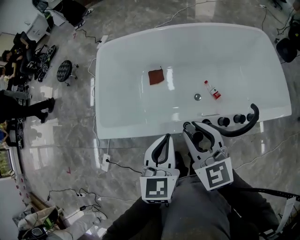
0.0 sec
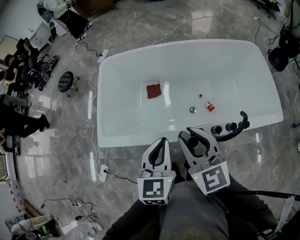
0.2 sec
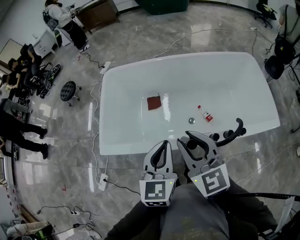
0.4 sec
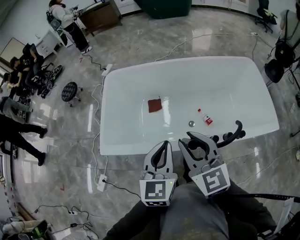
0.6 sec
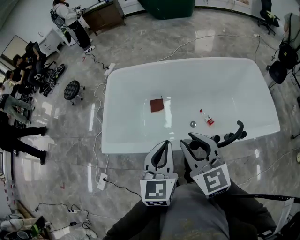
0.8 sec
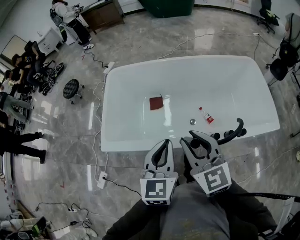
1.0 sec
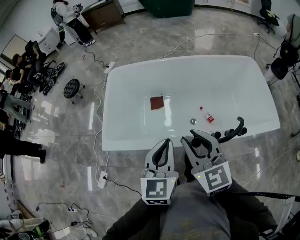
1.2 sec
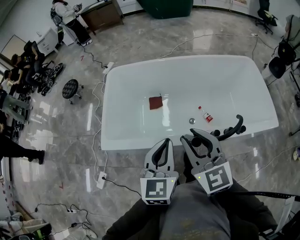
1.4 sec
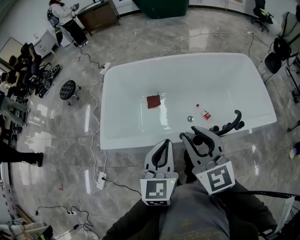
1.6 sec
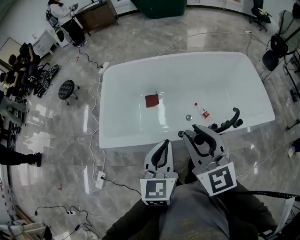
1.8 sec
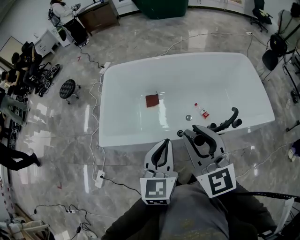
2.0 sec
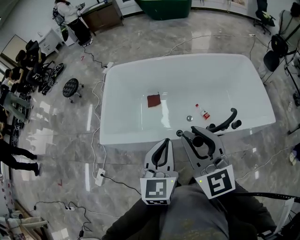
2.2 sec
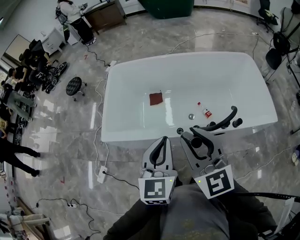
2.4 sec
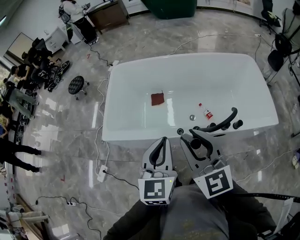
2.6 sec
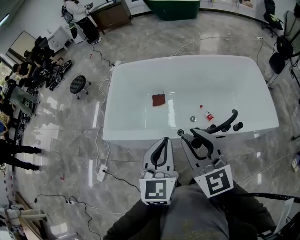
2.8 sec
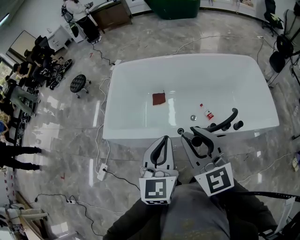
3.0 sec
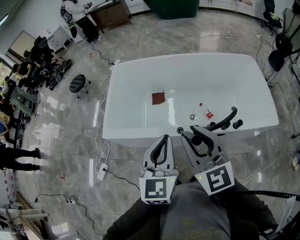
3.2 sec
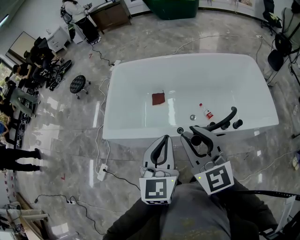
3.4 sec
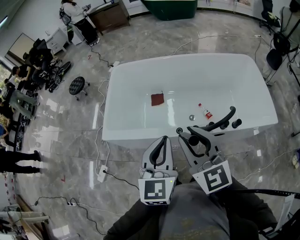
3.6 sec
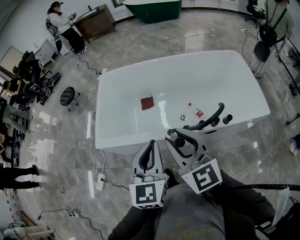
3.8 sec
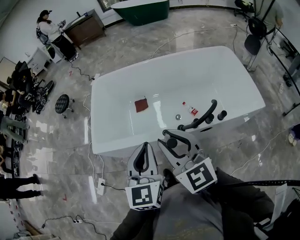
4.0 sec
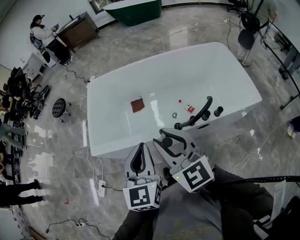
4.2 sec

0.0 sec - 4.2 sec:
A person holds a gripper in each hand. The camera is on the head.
0.0 sec - 1.4 sec: Both grippers move upward, roughly 10 cm.
1.4 sec - 2.8 sec: Both grippers move backward, roughly 10 cm.
2.8 sec - 4.2 sec: The grippers make only small movements.

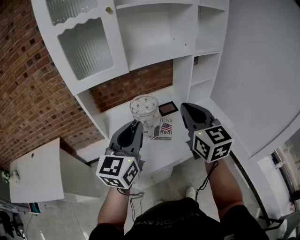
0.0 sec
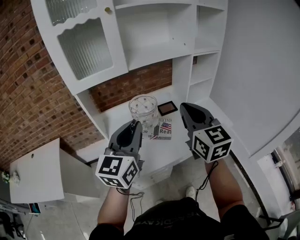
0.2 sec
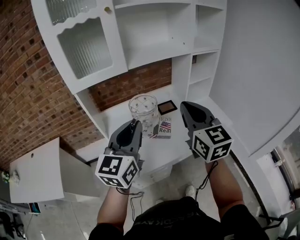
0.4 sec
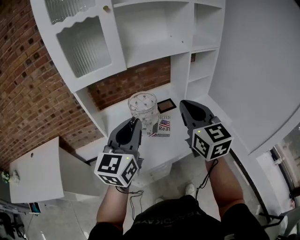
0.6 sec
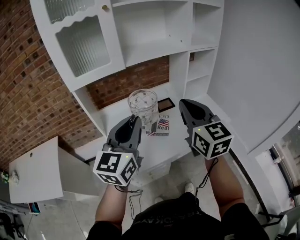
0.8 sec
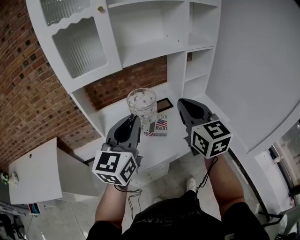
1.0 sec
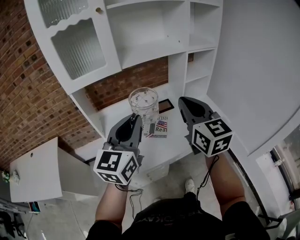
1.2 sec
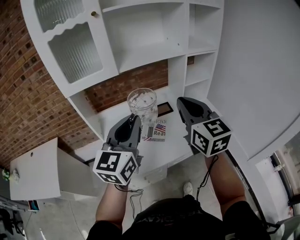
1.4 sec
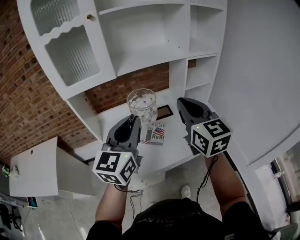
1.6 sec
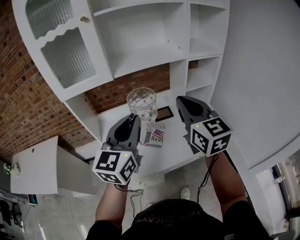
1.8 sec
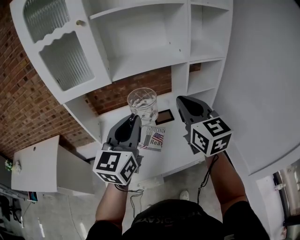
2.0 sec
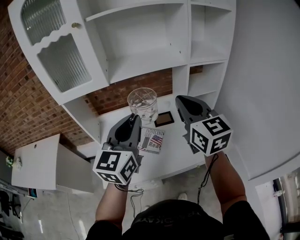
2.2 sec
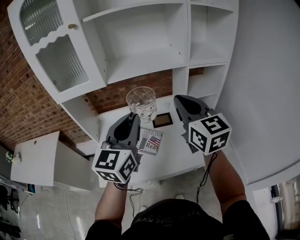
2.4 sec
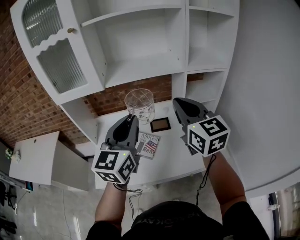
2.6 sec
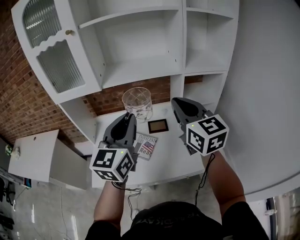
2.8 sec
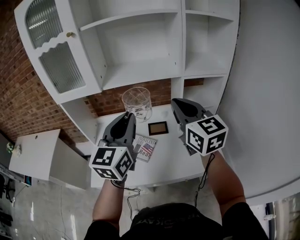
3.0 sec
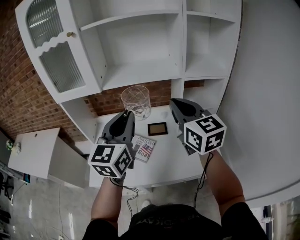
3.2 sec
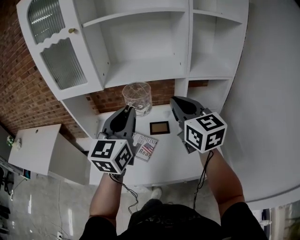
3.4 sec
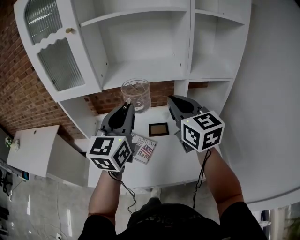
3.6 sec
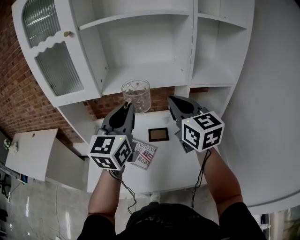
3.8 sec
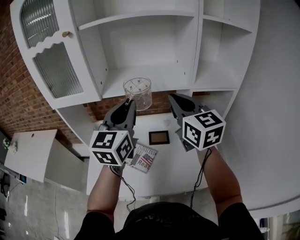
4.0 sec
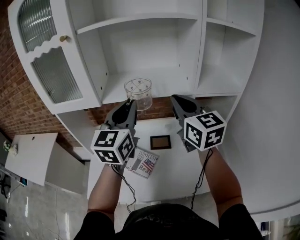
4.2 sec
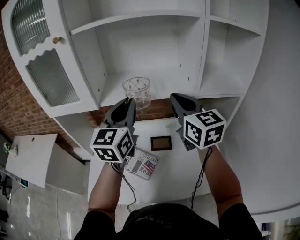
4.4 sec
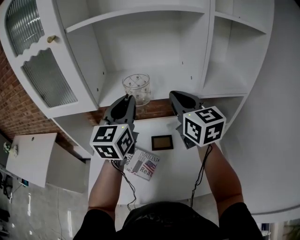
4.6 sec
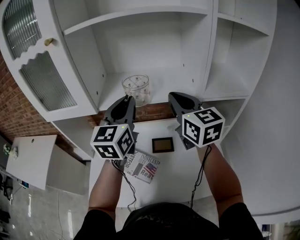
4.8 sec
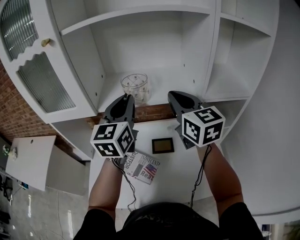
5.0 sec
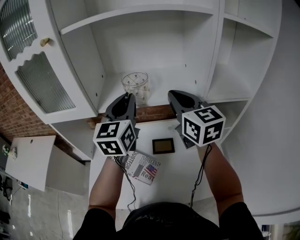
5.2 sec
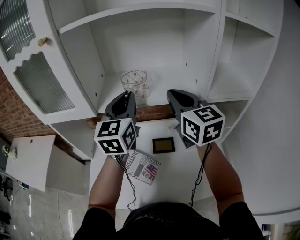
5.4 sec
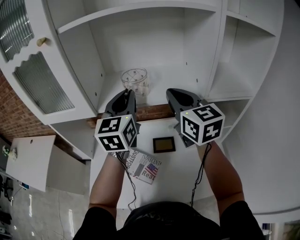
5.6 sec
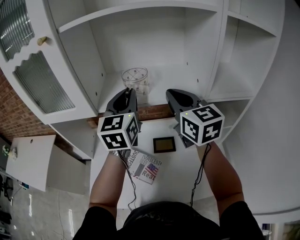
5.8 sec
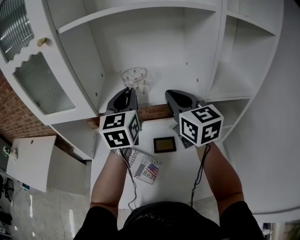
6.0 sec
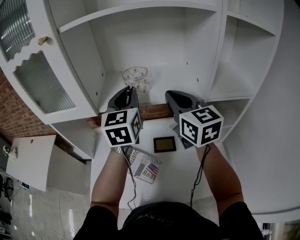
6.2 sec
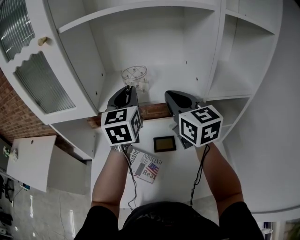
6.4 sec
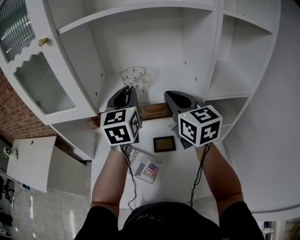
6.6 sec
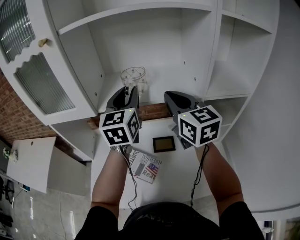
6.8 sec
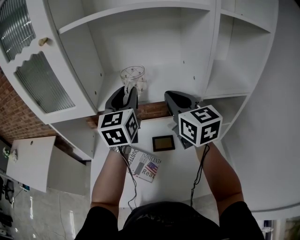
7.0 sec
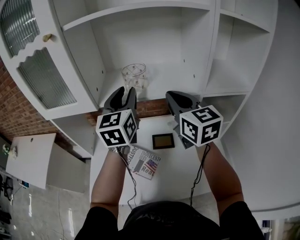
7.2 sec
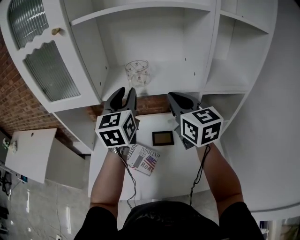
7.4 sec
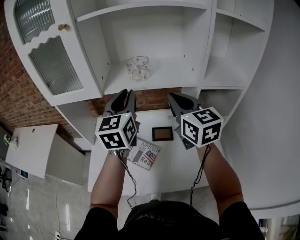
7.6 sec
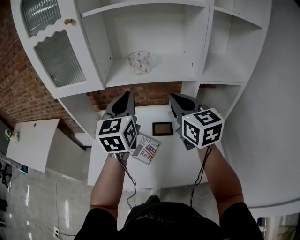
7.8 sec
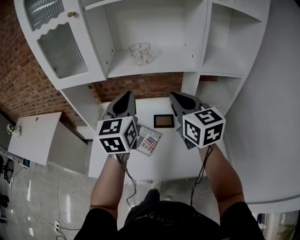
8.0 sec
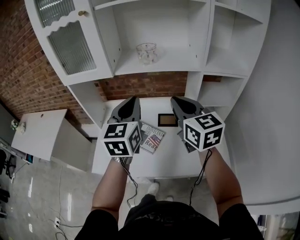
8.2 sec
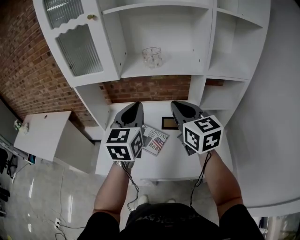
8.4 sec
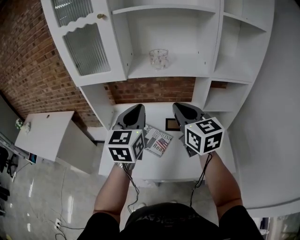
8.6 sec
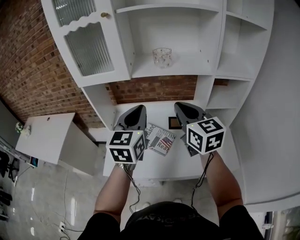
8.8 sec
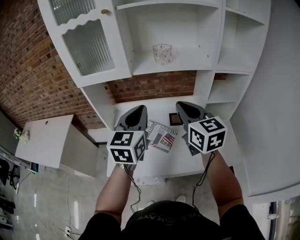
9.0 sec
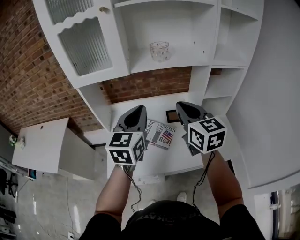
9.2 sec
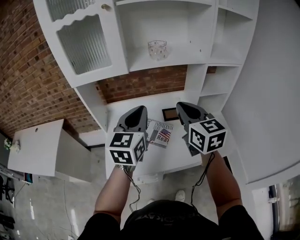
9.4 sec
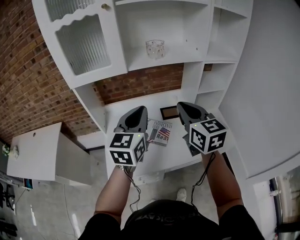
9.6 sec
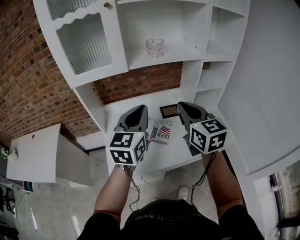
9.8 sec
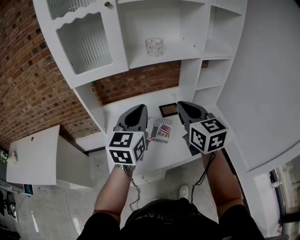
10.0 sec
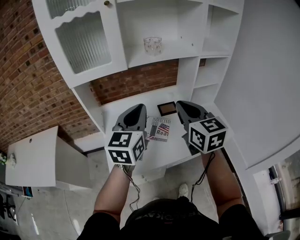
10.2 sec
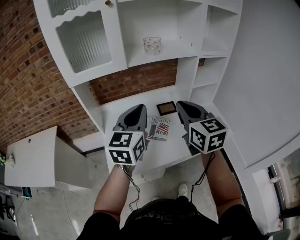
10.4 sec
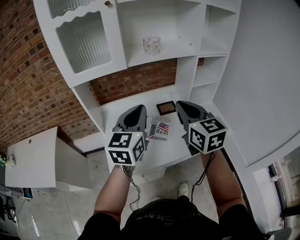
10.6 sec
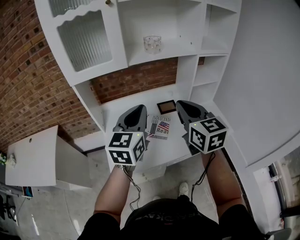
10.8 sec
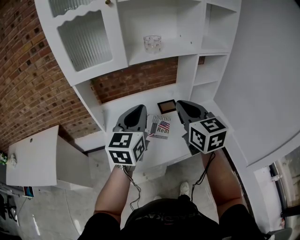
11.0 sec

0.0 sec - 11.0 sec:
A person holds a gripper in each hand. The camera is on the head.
0.0 sec - 1.6 sec: Both grippers travel together to the right, approximately 5 cm.
1.6 sec - 3.2 sec: The two grippers go approximately 15 cm to the right and forward.
3.2 sec - 4.8 sec: The grippers both shift forward by roughly 20 cm.
4.8 sec - 6.2 sec: The left gripper goes some 5 cm forward.
6.2 sec - 7.8 sec: The grippers both shift backward by roughly 15 cm. The left gripper opens, then closes once more.
7.8 sec - 9.4 sec: The left gripper heads backward and to the left, covering some 15 cm; the right gripper heads to the left and backward, covering roughly 15 cm.
9.4 sec - 11.0 sec: The left gripper shifts by roughly 5 cm, while the right gripper shifts roughly 5 cm backward.

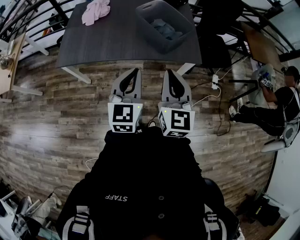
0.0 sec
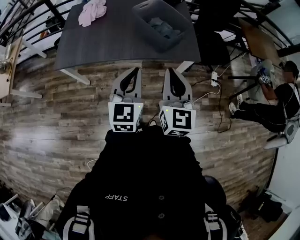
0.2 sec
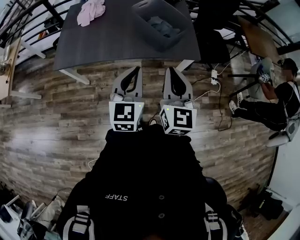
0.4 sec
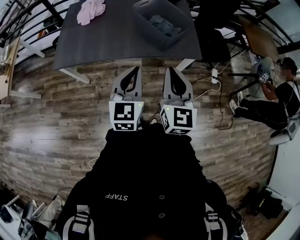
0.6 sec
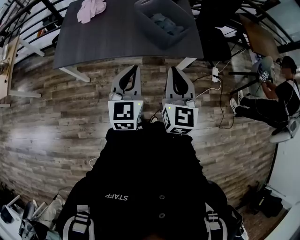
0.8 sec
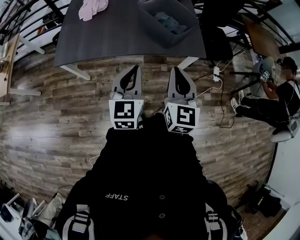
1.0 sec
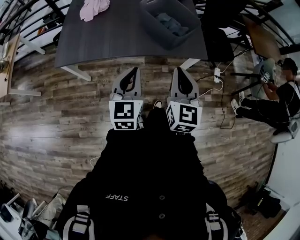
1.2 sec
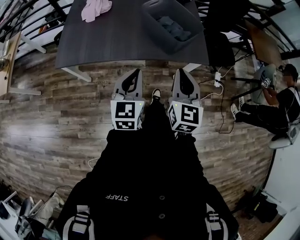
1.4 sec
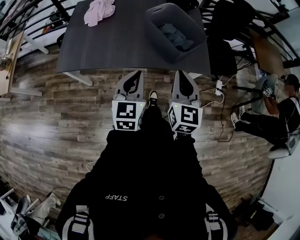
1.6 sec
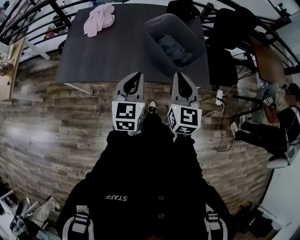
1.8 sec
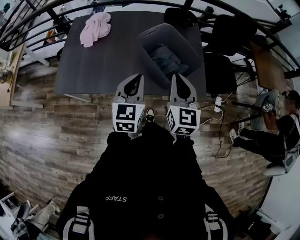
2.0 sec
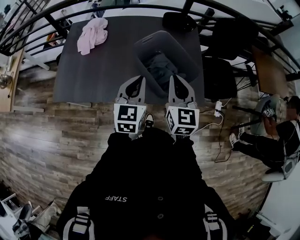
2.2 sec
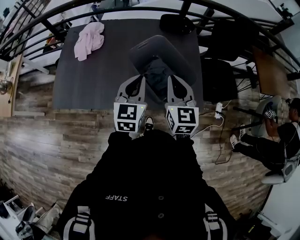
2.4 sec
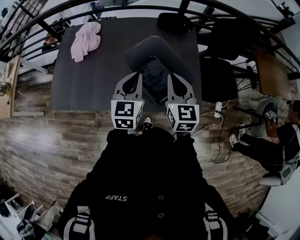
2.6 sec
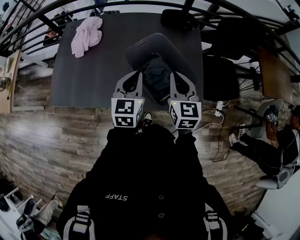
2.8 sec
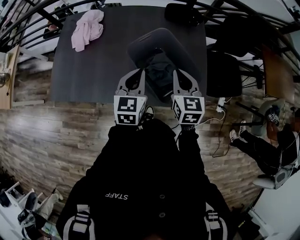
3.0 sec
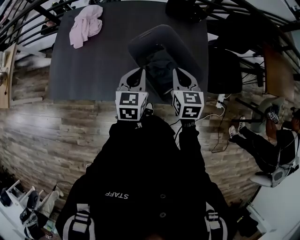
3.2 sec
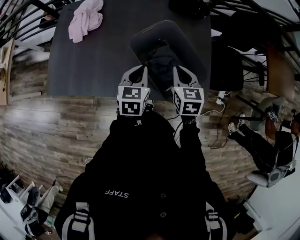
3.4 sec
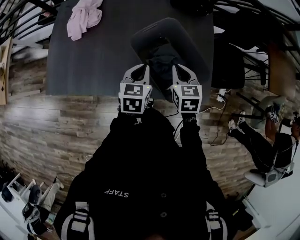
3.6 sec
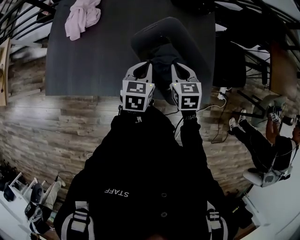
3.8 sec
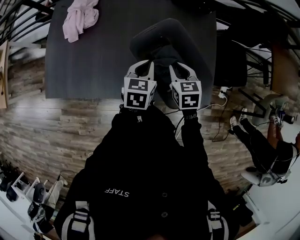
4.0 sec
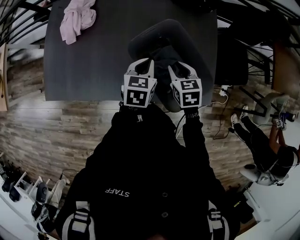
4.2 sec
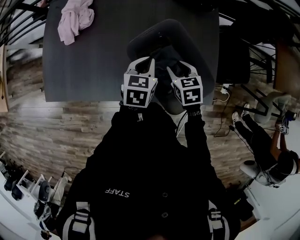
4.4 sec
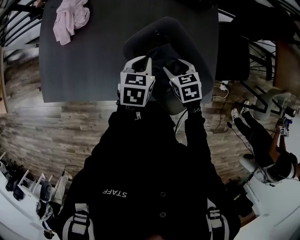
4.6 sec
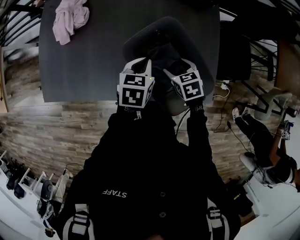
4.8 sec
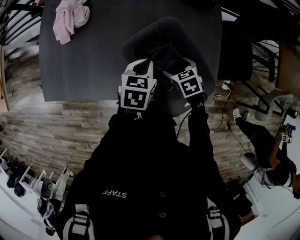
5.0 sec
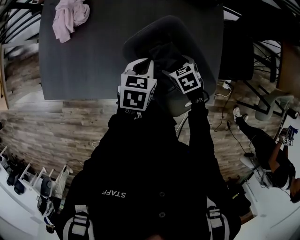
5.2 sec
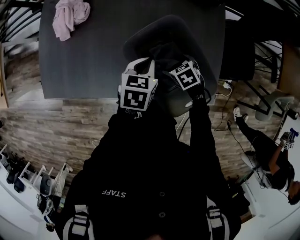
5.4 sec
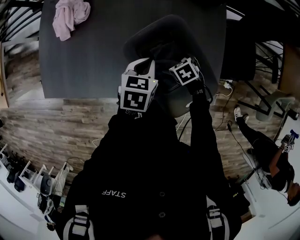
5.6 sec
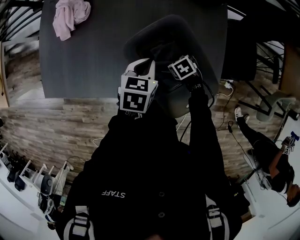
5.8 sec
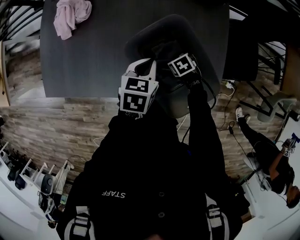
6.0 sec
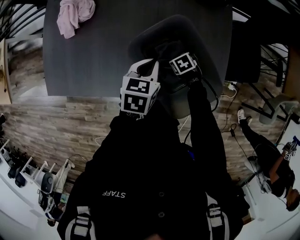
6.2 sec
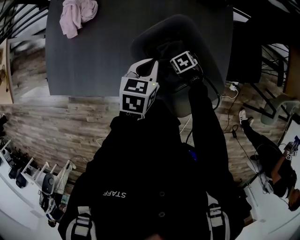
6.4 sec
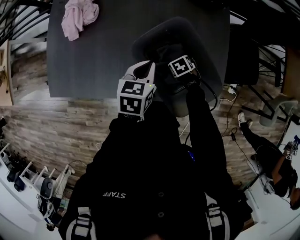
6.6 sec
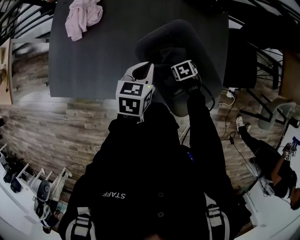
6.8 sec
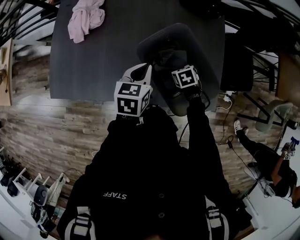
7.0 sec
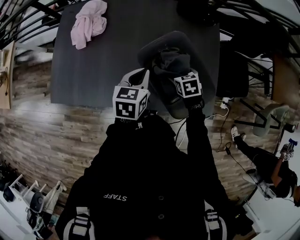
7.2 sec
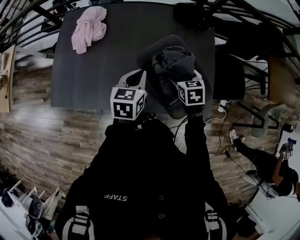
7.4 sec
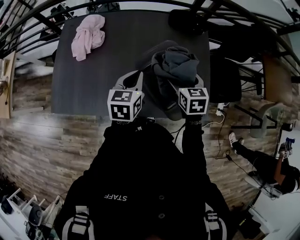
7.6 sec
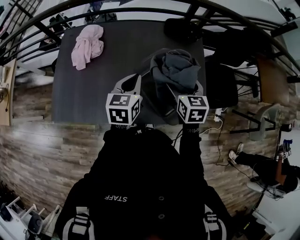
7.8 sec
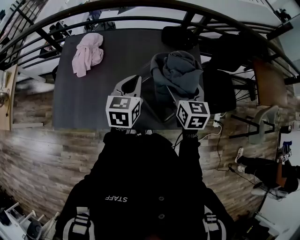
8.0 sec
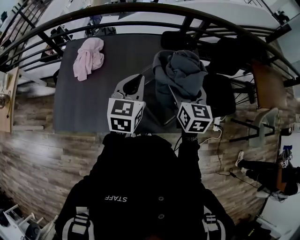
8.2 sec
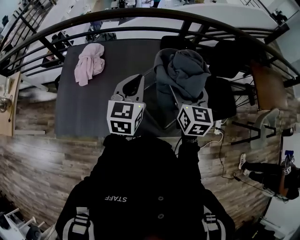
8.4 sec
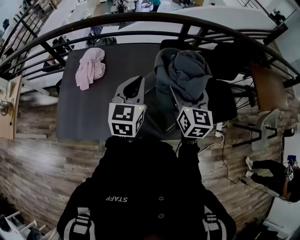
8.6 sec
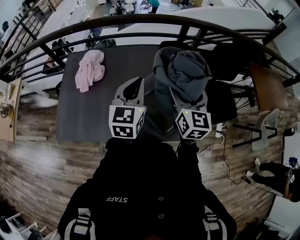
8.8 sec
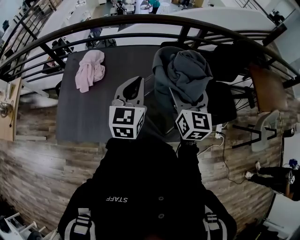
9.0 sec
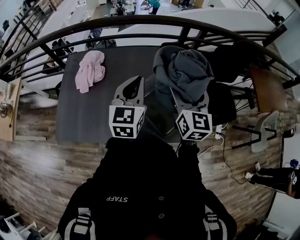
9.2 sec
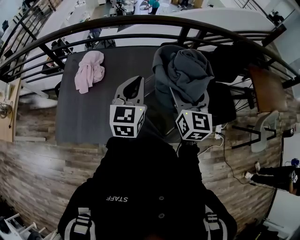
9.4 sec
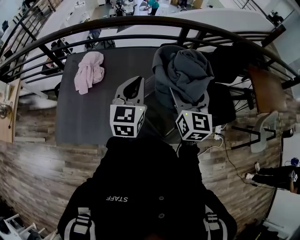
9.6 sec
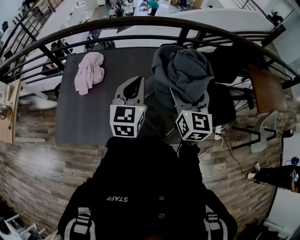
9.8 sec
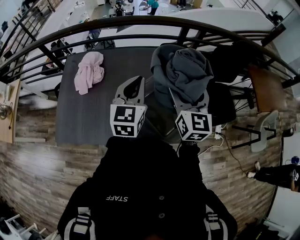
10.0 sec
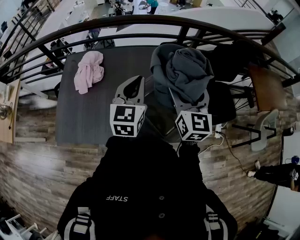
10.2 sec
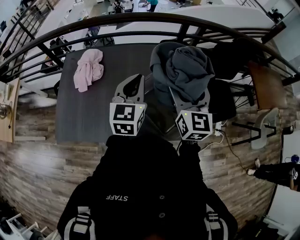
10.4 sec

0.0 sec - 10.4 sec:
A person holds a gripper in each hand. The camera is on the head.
0.0 sec - 1.4 sec: The left gripper shifts some 5 cm downward. The right gripper shifts approximately 10 cm forward and downward.
1.4 sec - 3.0 sec: Both grippers move forward, approximately 35 cm.
3.0 sec - 4.4 sec: The grippers both shift downward and forward by about 15 cm. The left gripper swivels roughly 20 degrees. The right gripper turns by roughly 30 degrees.
4.4 sec - 6.0 sec: The right gripper is displaced downward by approximately 20 cm, rotates about 30 degrees, and opens.
6.0 sec - 7.4 sec: The left gripper goes approximately 10 cm upward, while the right gripper moves upward, about 20 cm, and turns by roughly 30 degrees.
7.4 sec - 9.0 sec: The left gripper heads upward, covering some 20 cm, and changes its angle by some 30 degrees, while the right gripper travels upward by about 25 cm, and tips its fingers upward by some 50 degrees.
9.0 sec - 10.4 sec: The grippers move only a little.
